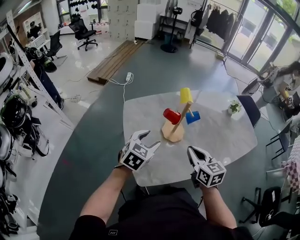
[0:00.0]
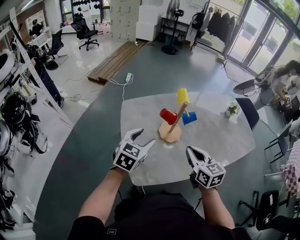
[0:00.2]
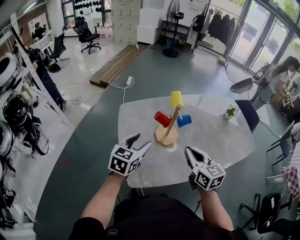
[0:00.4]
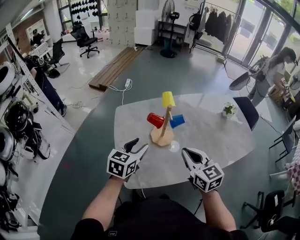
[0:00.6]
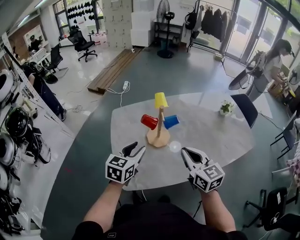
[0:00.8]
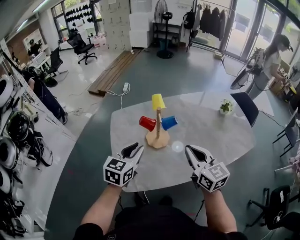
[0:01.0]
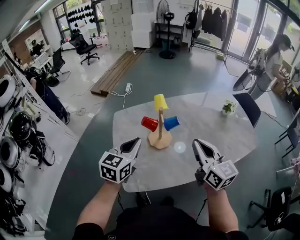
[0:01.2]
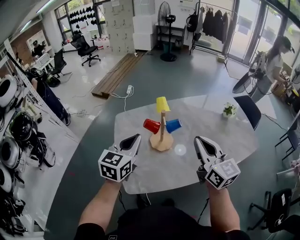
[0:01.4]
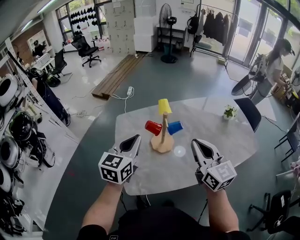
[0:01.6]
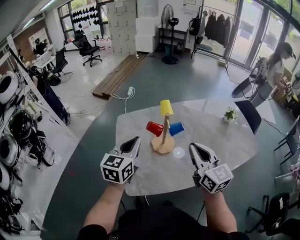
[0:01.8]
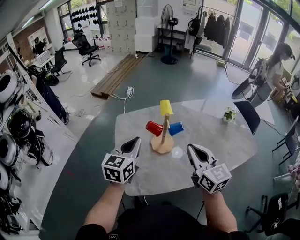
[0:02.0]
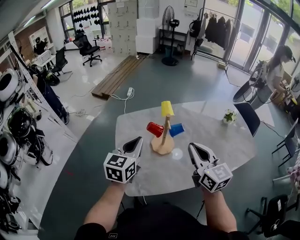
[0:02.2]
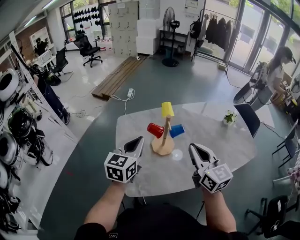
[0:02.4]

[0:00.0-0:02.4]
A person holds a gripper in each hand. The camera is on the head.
0:00.0 to 0:01.2: The left gripper goes approximately 10 cm upward and to the right, swivels about 20 degrees, and closes up. The right gripper moves to the right and upward, about 15 cm.
0:01.2 to 0:02.4: The grippers make only small movements.

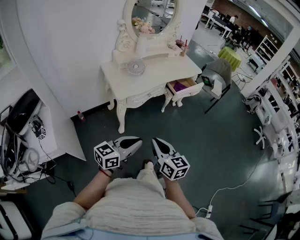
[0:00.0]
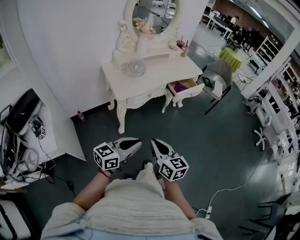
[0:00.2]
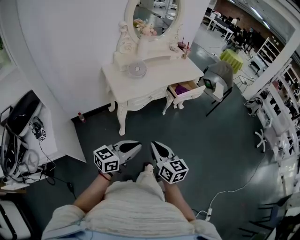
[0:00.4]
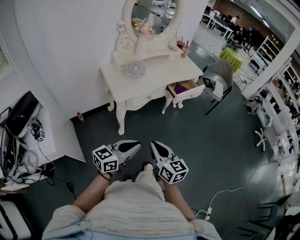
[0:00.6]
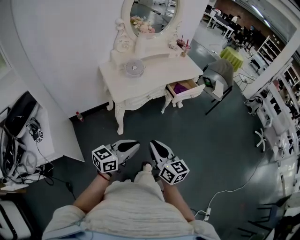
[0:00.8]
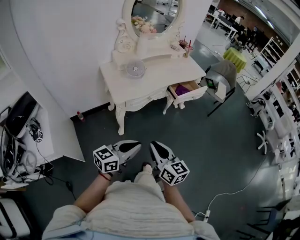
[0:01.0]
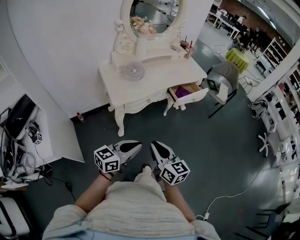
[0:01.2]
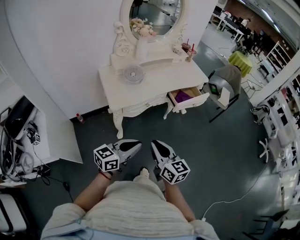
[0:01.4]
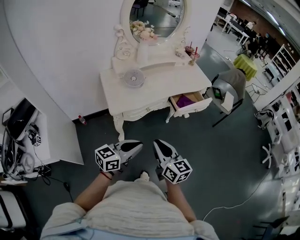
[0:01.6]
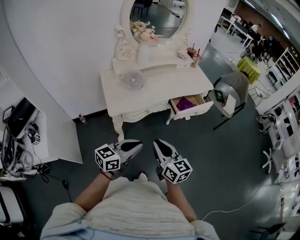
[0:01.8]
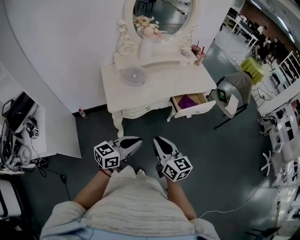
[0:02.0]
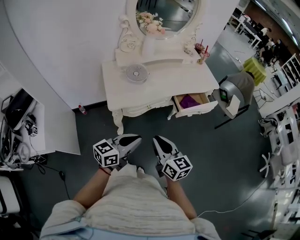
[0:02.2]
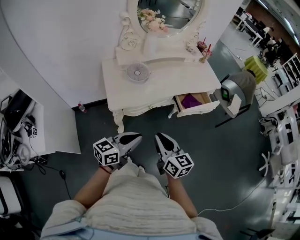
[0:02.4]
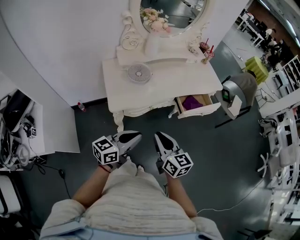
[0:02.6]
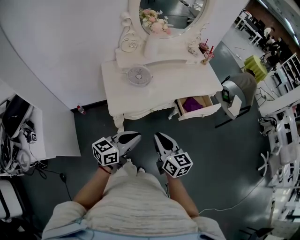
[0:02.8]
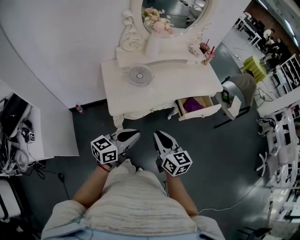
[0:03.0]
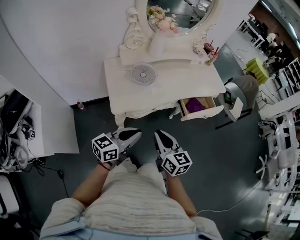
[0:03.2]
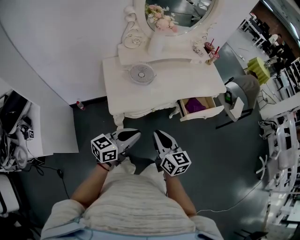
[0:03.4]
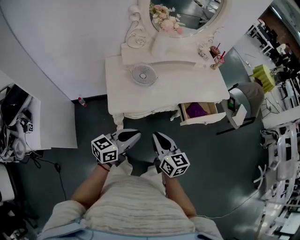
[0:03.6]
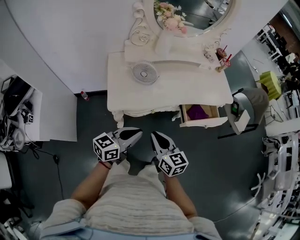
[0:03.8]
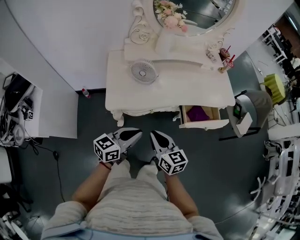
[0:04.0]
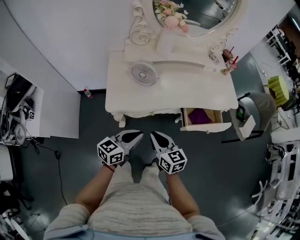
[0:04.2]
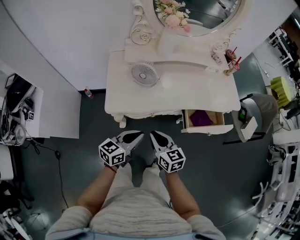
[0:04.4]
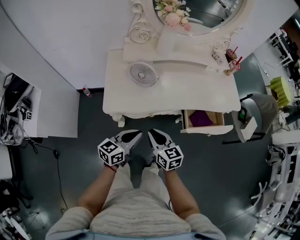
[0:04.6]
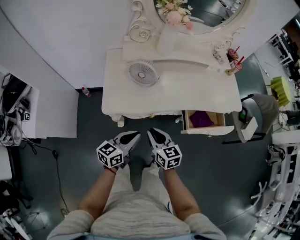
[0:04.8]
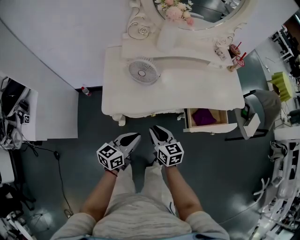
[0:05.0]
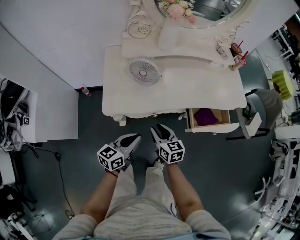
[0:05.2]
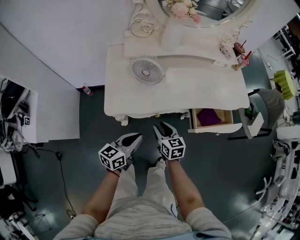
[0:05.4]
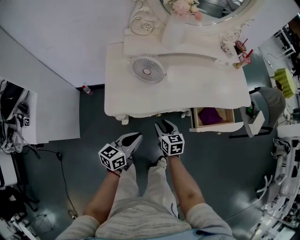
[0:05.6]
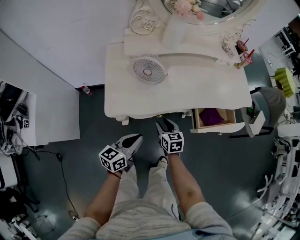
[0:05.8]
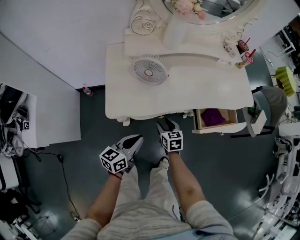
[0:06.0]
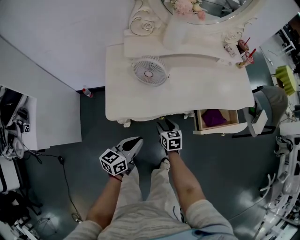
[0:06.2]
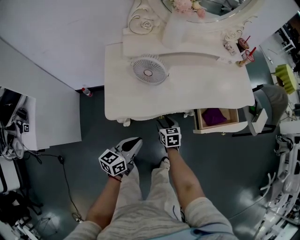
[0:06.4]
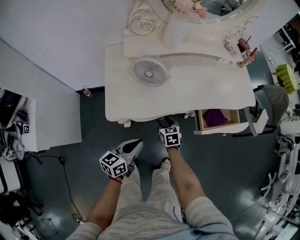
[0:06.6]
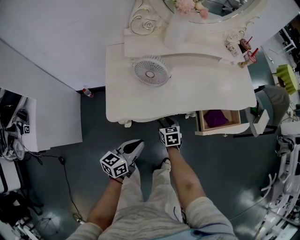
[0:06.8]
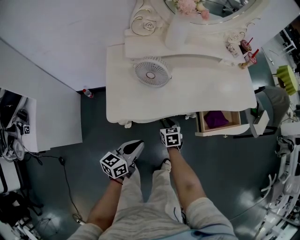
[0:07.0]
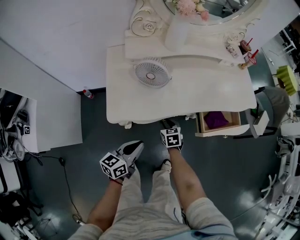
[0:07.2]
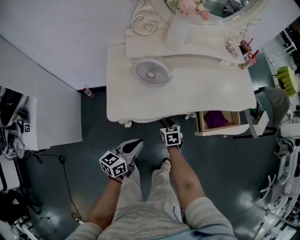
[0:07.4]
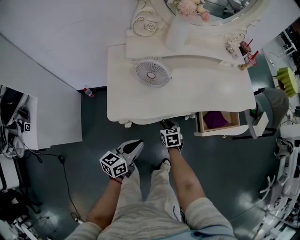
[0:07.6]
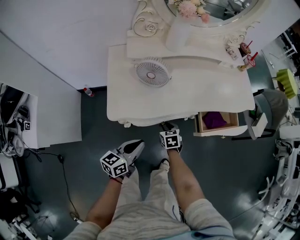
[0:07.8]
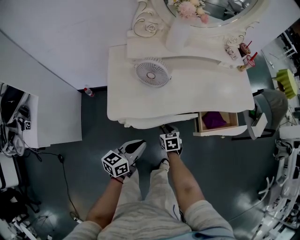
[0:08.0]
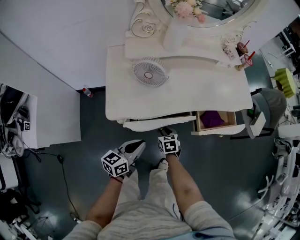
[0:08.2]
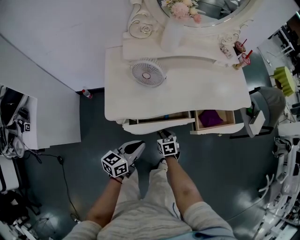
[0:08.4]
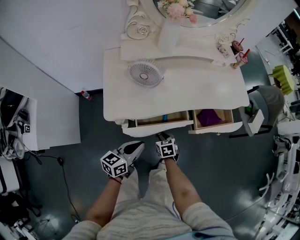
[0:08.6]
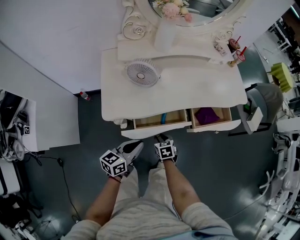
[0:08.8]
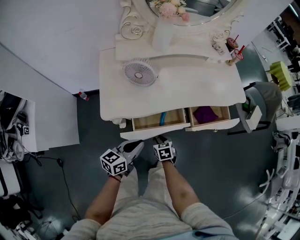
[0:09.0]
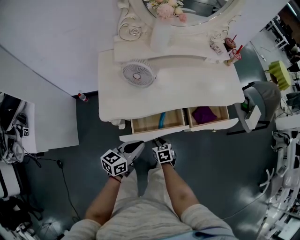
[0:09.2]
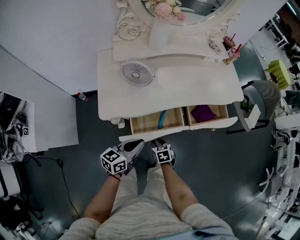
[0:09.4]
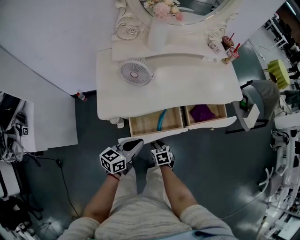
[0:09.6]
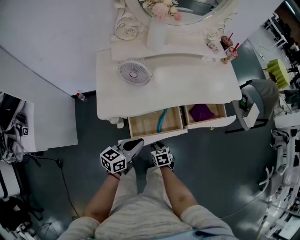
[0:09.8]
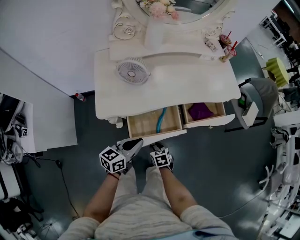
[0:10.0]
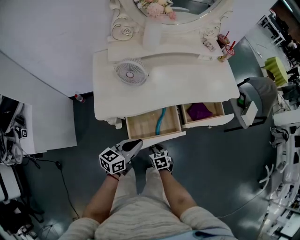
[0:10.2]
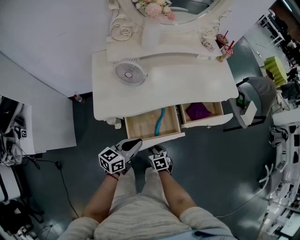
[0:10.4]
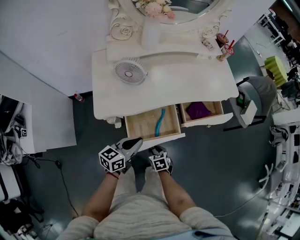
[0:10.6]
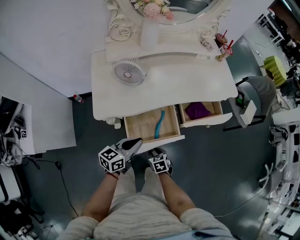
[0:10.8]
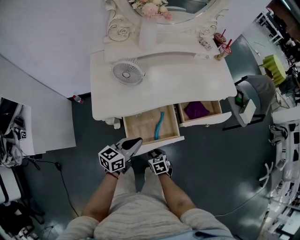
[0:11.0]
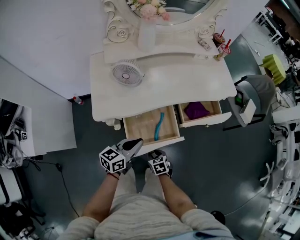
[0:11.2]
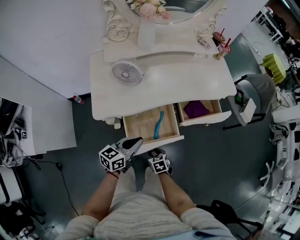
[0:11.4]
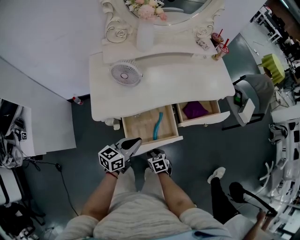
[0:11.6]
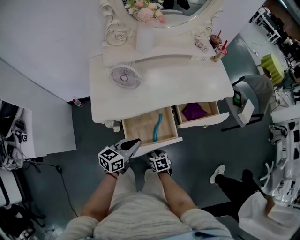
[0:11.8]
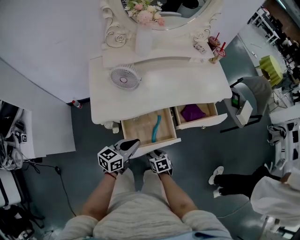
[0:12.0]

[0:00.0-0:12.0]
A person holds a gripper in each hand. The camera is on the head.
0:00.0 to 0:01.6: Both grippers move forward, some 15 cm.
0:01.6 to 0:03.0: The left gripper goes about 15 cm forward and to the left. Meanwhile the right gripper shifts about 15 cm forward.
0:03.0 to 0:04.4: The left gripper goes some 15 cm forward, downward and to the right. Meanwhile the right gripper travels downward and forward by roughly 15 cm, and rotates some 20 degrees.
0:04.4 to 0:06.0: The right gripper moves downward and forward, approximately 20 cm, turns by roughly 20 degrees, and opens. Meanwhile the left gripper travels downward by roughly 10 cm.
0:06.0 to 0:07.6: The grippers stay close to where they were, moving slightly.
0:07.6 to 0:09.0: The left gripper shifts by roughly 5 cm, while the right gripper goes approximately 10 cm backward.
0:09.0 to 0:10.4: The right gripper moves backward, roughly 5 cm.
0:10.4 to 0:12.0: The grippers move only a little.

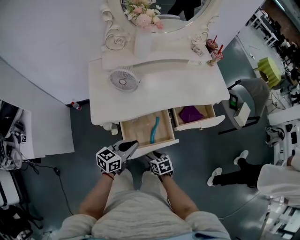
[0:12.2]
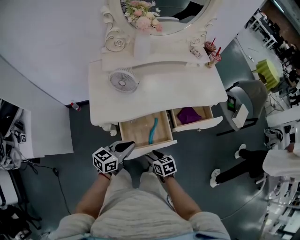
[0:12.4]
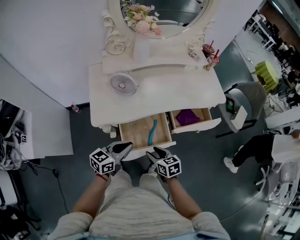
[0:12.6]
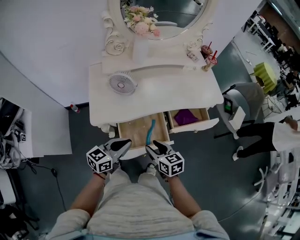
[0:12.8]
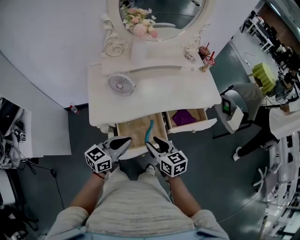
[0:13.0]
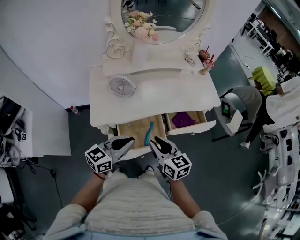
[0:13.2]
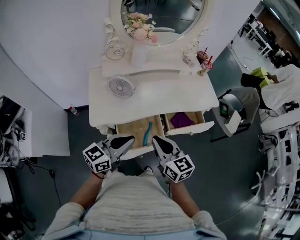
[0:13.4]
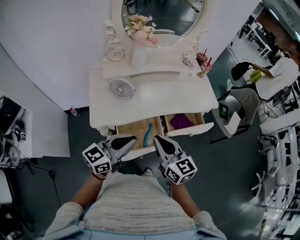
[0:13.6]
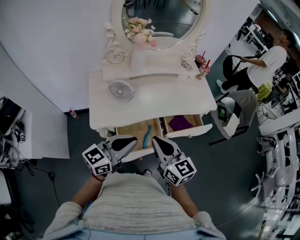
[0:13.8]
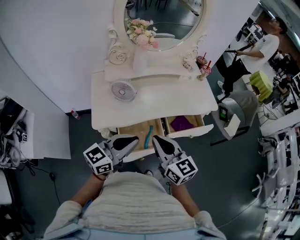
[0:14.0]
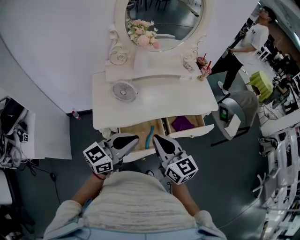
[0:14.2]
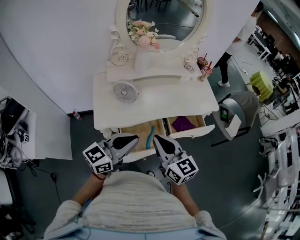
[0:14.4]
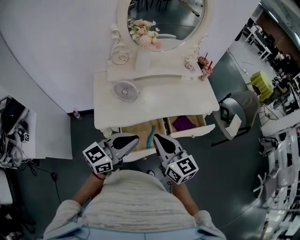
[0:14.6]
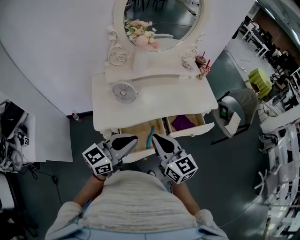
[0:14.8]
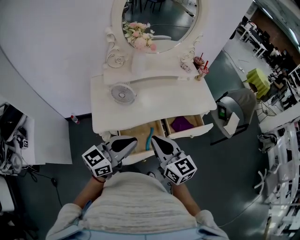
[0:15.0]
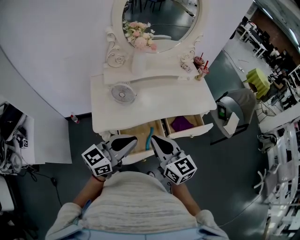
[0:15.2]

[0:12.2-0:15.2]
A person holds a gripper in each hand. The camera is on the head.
0:12.2 to 0:13.8: The right gripper goes some 35 cm upward, points its fingers approximately 50 degrees further upward, and closes. Meanwhile the left gripper travels upward by roughly 20 cm, and turns by some 20 degrees.
0:13.8 to 0:15.2: The grippers move only a little.

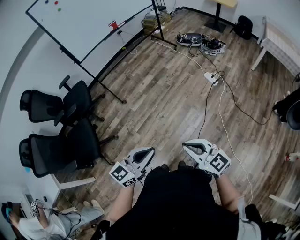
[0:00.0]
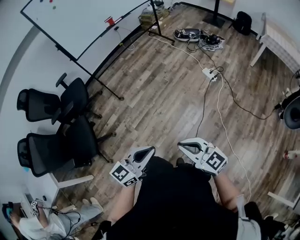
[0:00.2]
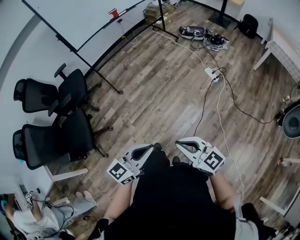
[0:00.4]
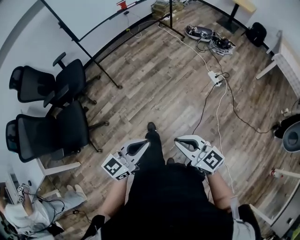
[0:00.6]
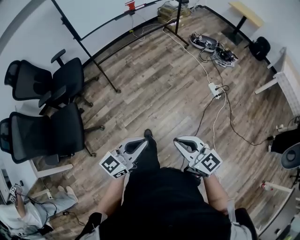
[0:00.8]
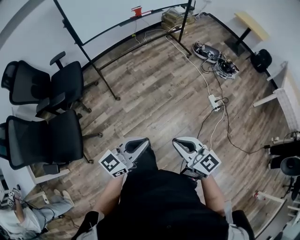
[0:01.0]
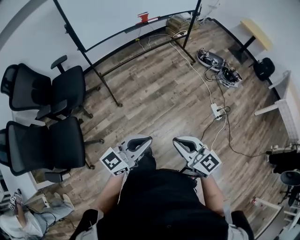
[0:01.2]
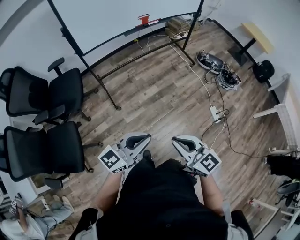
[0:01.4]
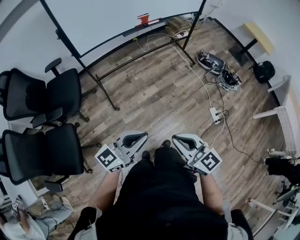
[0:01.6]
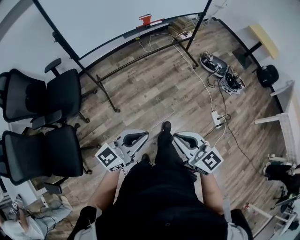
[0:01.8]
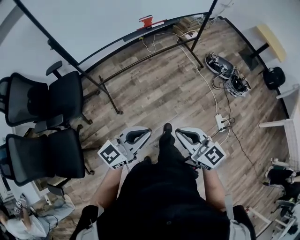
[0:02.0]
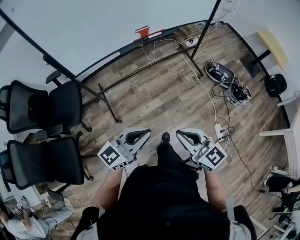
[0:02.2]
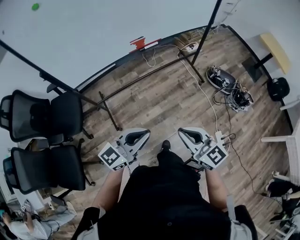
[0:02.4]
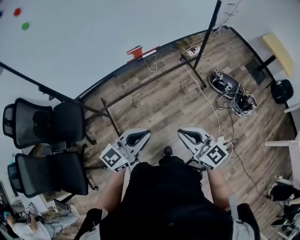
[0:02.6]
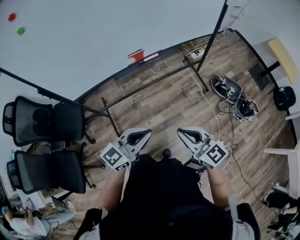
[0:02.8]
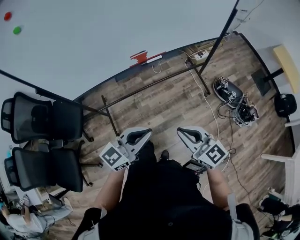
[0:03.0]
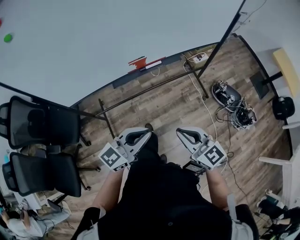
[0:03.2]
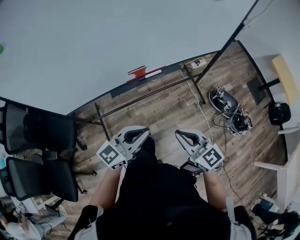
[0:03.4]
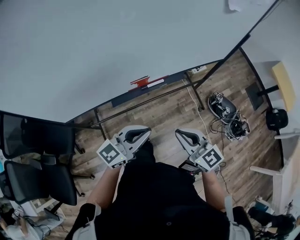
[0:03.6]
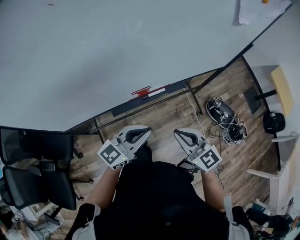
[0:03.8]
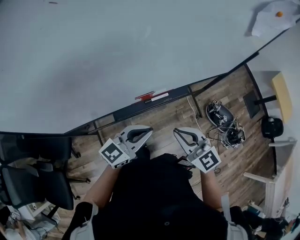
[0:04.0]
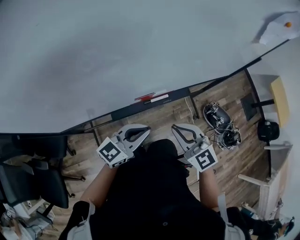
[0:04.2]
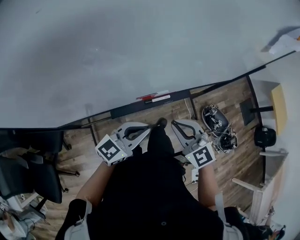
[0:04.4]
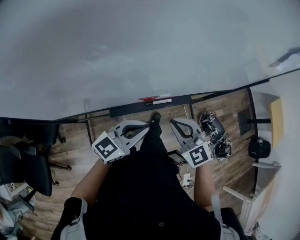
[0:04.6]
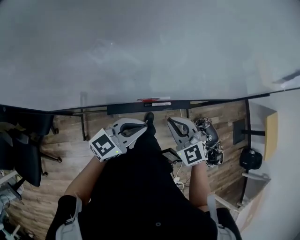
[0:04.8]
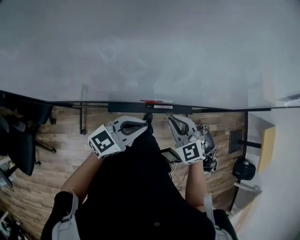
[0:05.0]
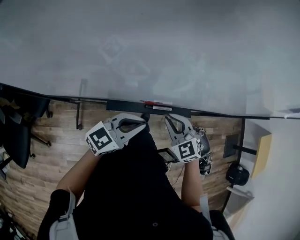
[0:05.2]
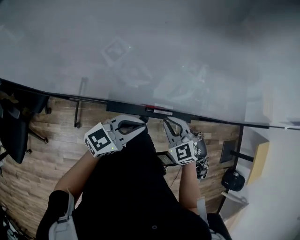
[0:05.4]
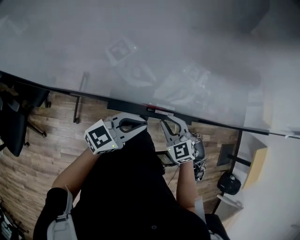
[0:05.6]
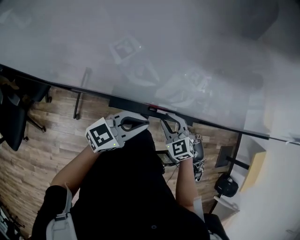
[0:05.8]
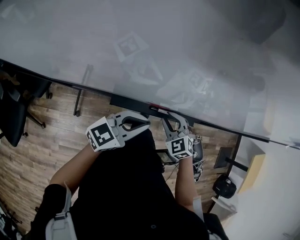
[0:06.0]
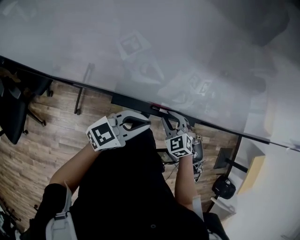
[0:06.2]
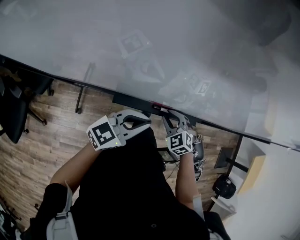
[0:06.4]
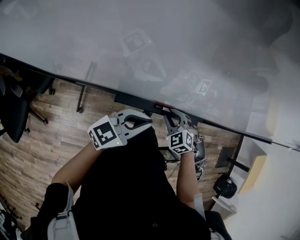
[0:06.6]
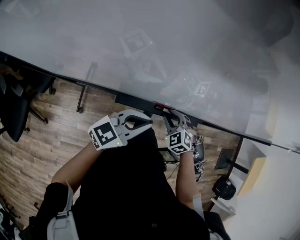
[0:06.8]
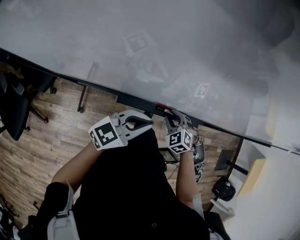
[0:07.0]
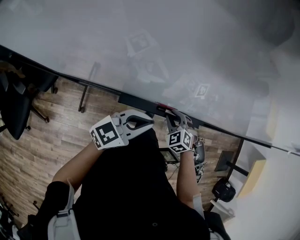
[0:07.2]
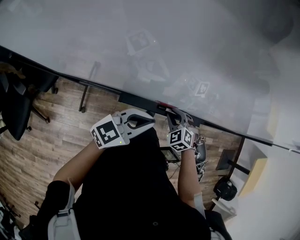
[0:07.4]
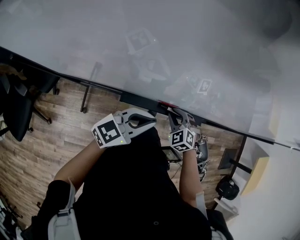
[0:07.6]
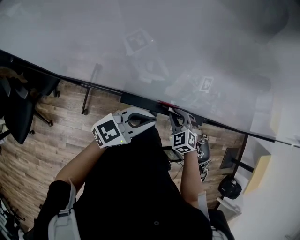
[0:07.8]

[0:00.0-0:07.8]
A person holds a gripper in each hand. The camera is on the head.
0:00.0 to 0:01.6: The two grippers travel together, forward, some 50 cm.
0:01.6 to 0:03.2: The two grippers travel together, forward, roughly 50 cm.
0:03.2 to 0:04.6: Both grippers travel together forward, about 25 cm. The right gripper rotates roughly 40 degrees.
0:04.6 to 0:06.2: The left gripper changes place by some 5 cm; the right gripper moves downward and forward, approximately 20 cm, and swivels about 20 degrees.
0:06.2 to 0:07.8: The grippers make only small movements.
